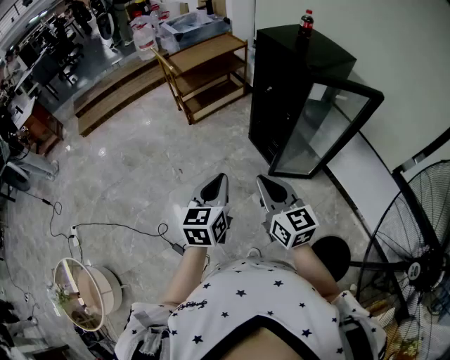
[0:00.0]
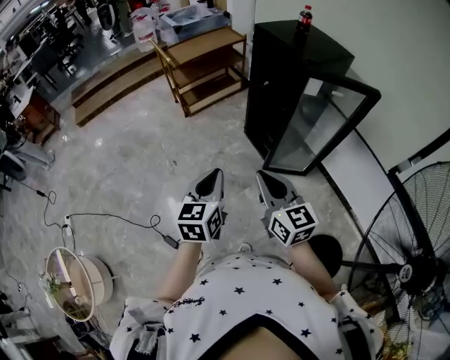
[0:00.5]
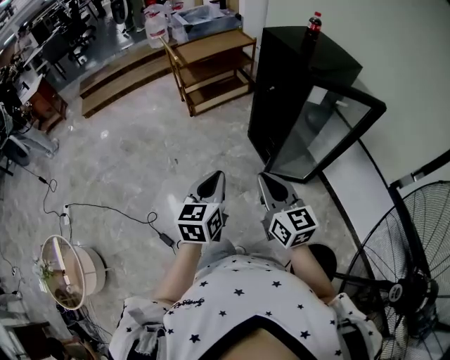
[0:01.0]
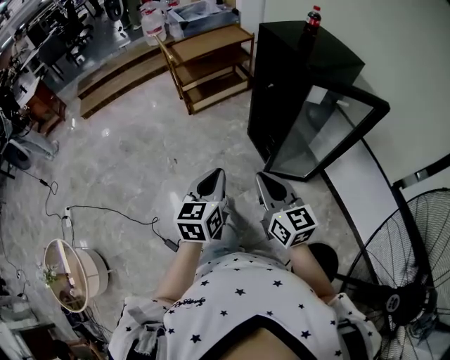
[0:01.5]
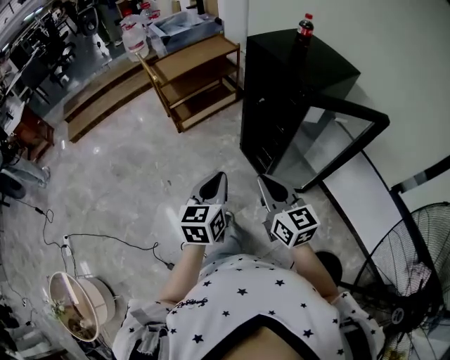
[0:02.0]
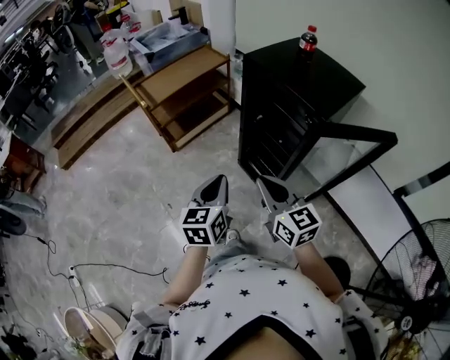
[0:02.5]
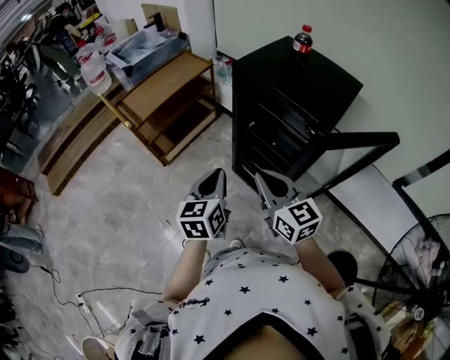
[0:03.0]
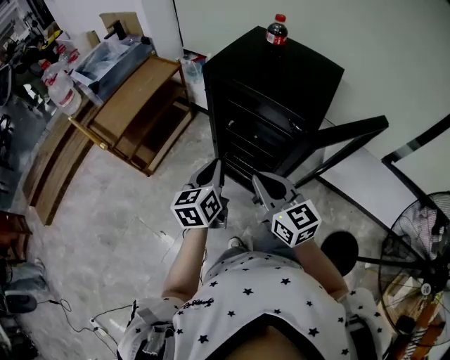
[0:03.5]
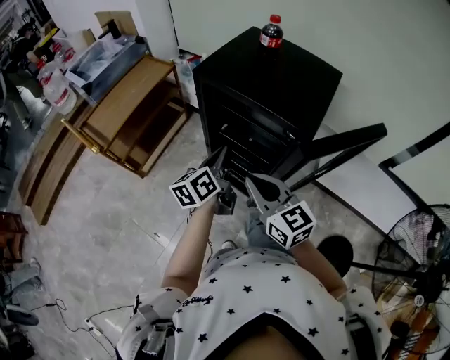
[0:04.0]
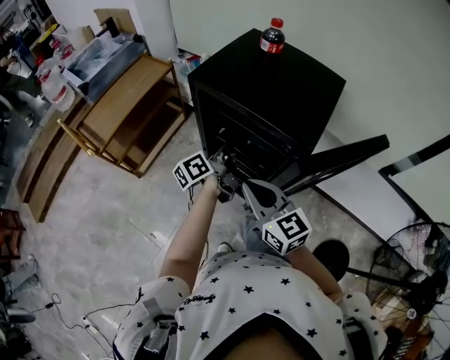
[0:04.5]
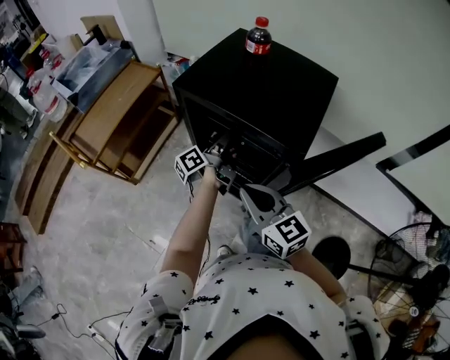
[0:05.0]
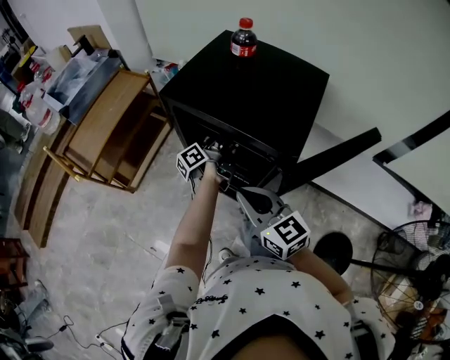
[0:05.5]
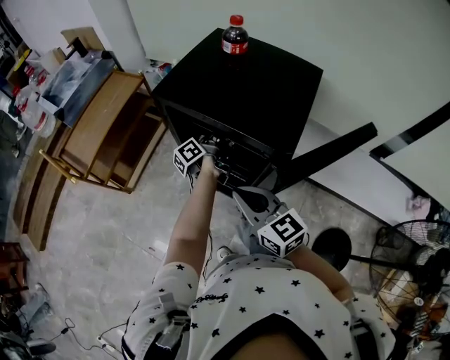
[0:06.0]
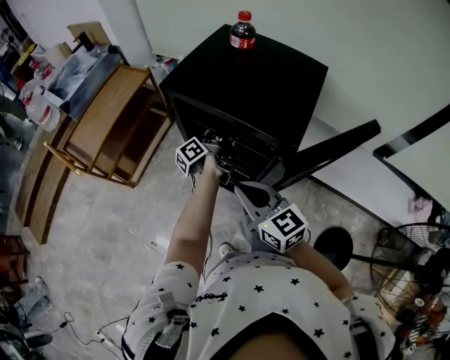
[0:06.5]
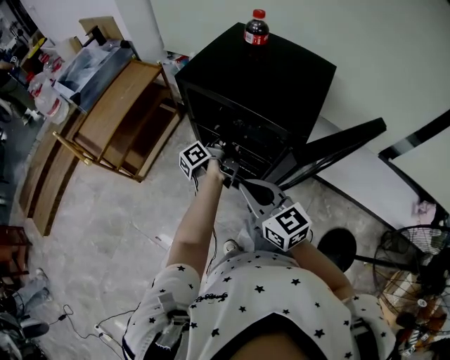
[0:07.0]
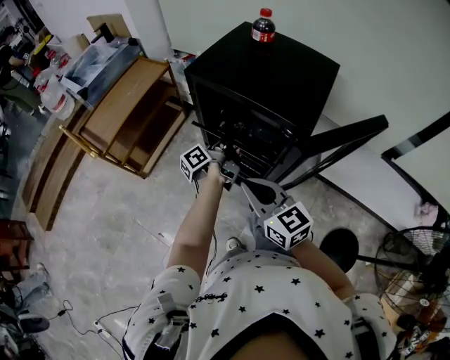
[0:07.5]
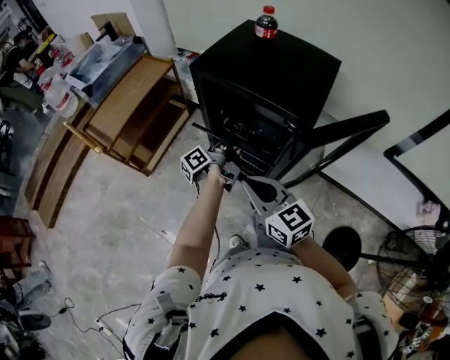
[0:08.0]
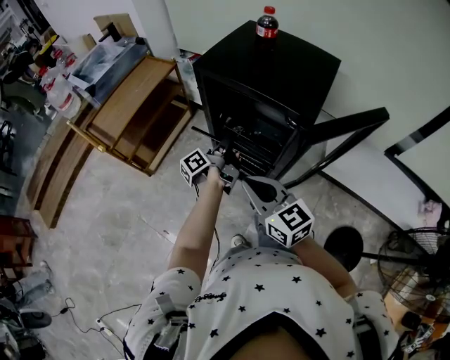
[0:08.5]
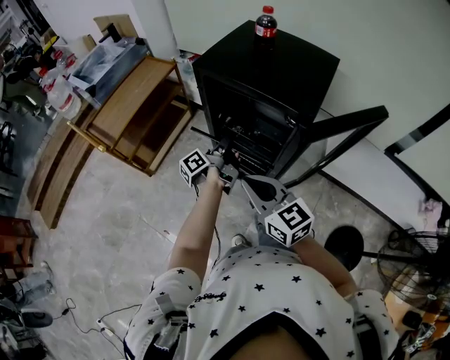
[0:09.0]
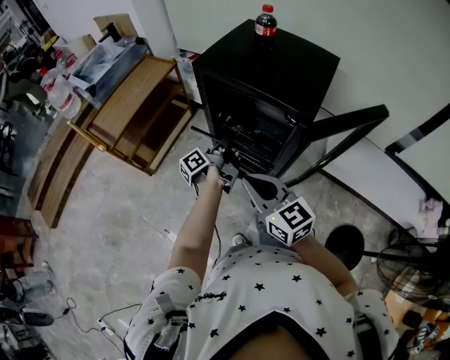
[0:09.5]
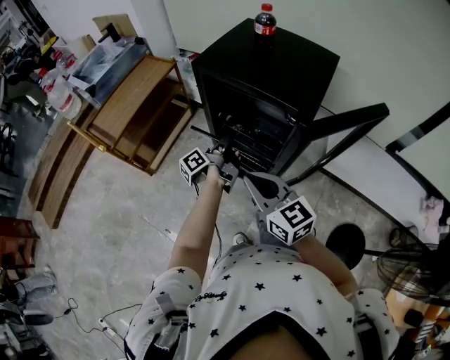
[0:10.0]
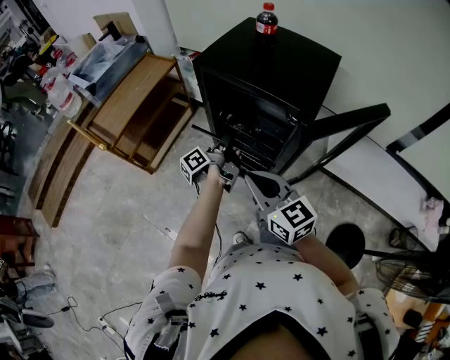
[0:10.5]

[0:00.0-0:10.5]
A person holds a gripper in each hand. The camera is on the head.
0.0 to 2.0 s: Both grippers move forward and to the right, approximately 15 cm.
2.0 to 4.0 s: The two grippers go approximately 35 cm forward. The left gripper changes its angle by approximately 40 degrees.
4.0 to 6.5 s: The left gripper moves forward, to the right and downward, approximately 20 cm, swivels roughly 40 degrees, and opens, then closes again.
6.5 to 8.5 s: The right gripper moves backward, roughly 5 cm. The left gripper moves backward and to the left, some 15 cm.
8.5 to 10.5 s: Both grippers stay about where they are.

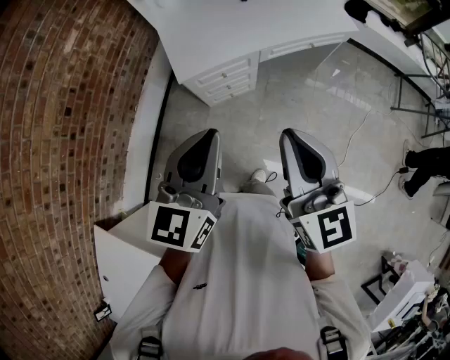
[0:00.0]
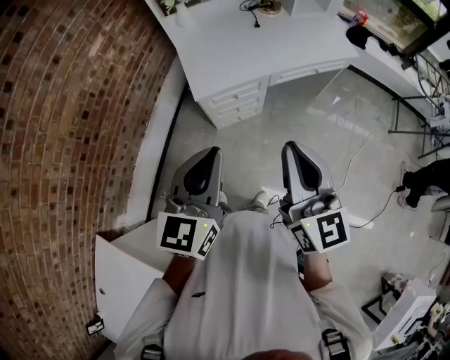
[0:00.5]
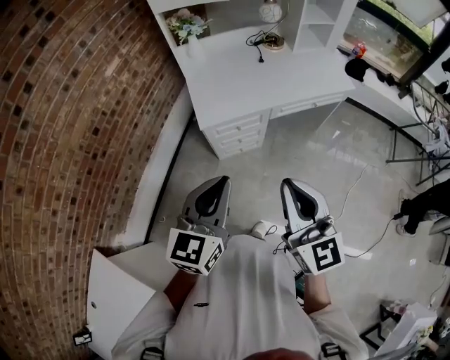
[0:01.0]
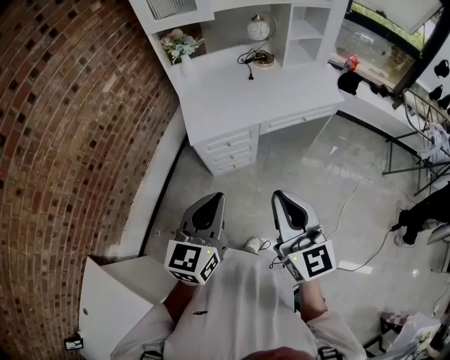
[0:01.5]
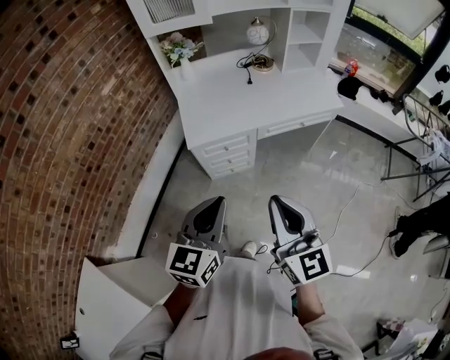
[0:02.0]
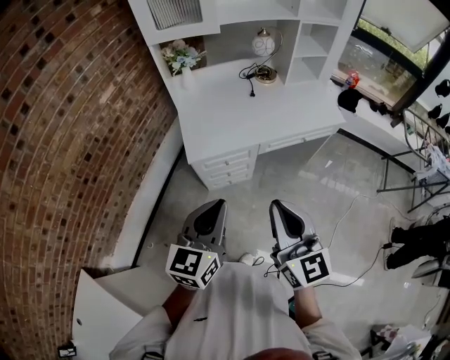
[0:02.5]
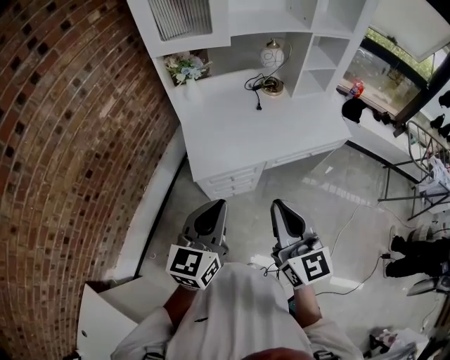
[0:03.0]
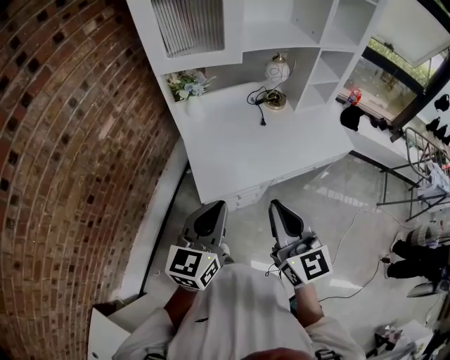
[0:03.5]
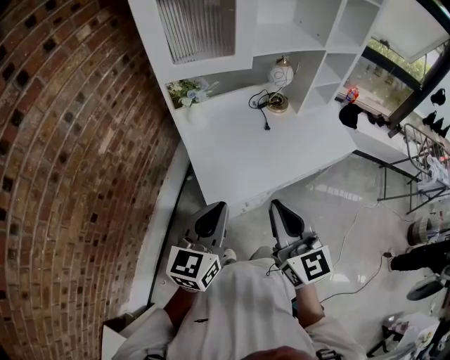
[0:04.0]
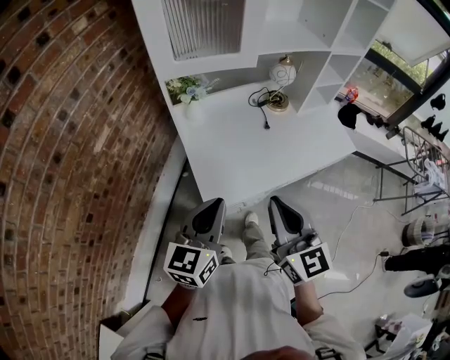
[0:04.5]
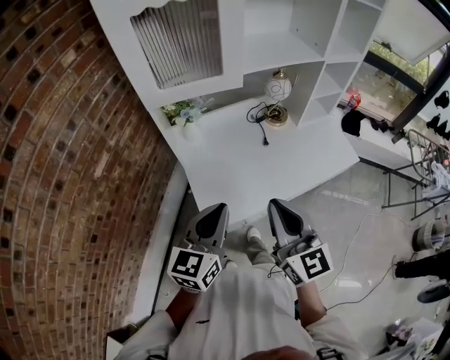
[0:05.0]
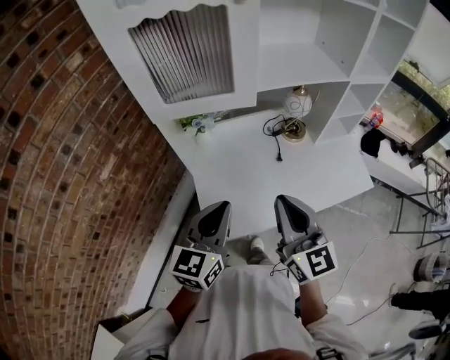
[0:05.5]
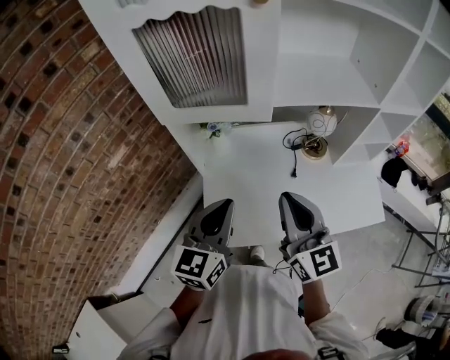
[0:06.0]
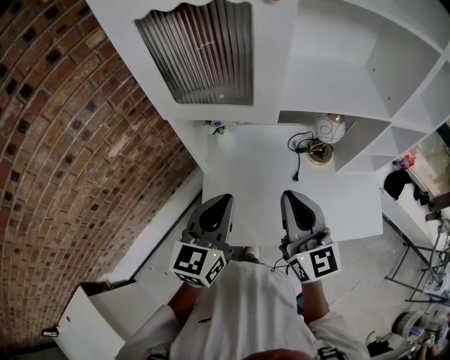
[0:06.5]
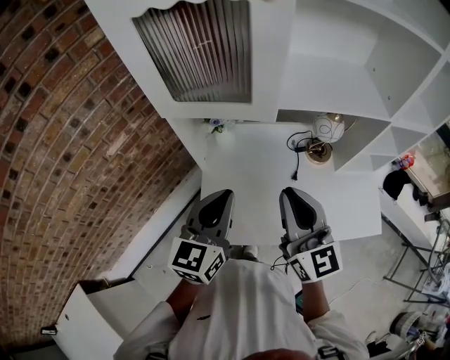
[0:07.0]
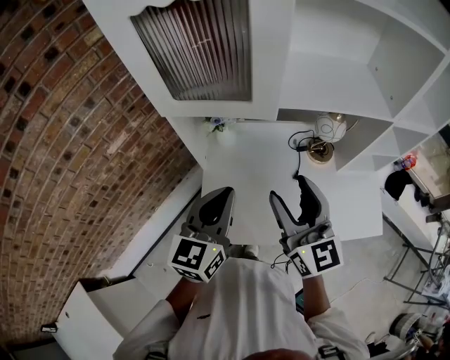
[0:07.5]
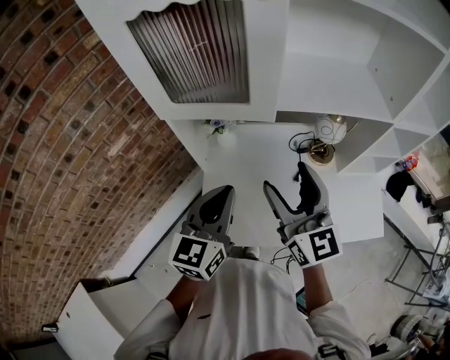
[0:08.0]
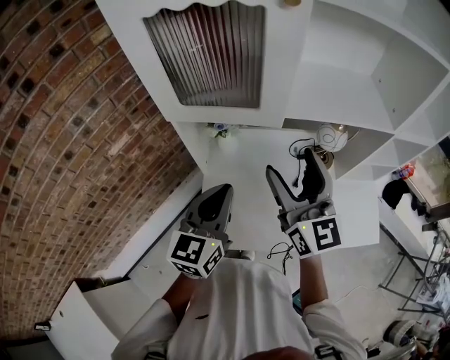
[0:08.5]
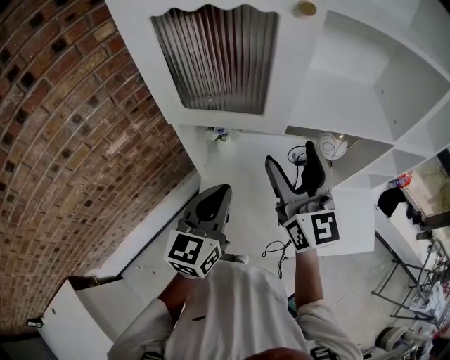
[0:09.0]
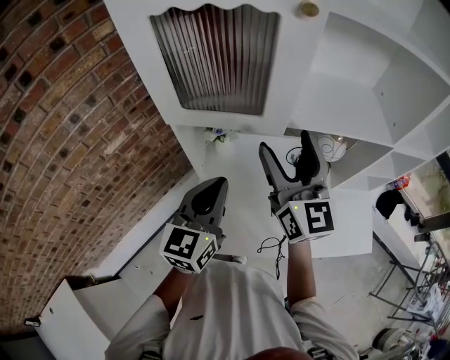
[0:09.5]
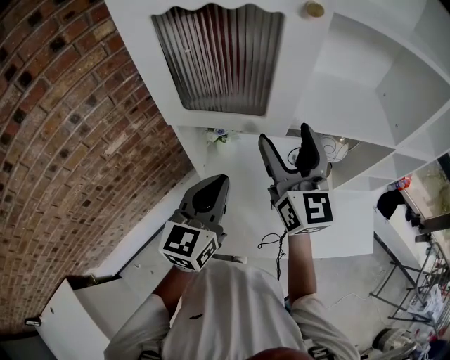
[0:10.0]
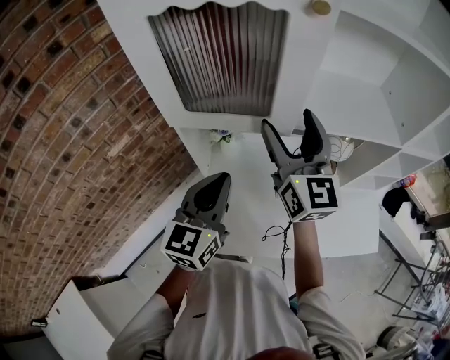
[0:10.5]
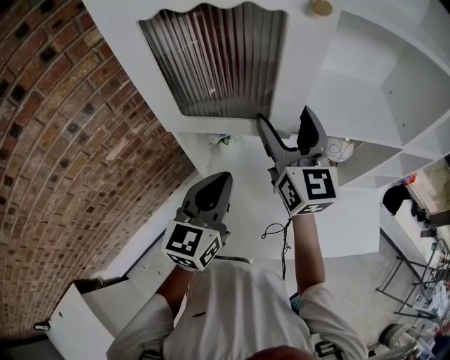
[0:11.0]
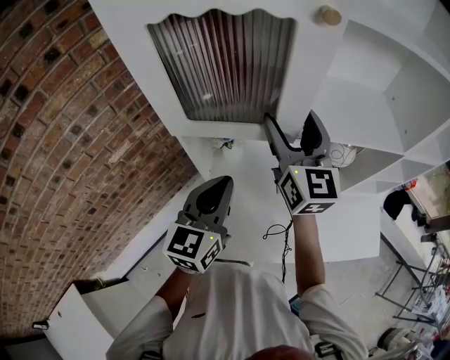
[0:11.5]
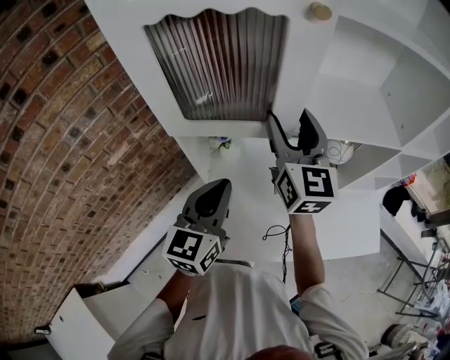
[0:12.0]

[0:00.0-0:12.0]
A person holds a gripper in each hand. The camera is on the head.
0.0 to 2.0 s: The two grippers go roughly 5 cm backward.
2.0 to 4.0 s: The two grippers go roughly 35 cm forward and to the left.
4.0 to 6.0 s: The two grippers go some 25 cm forward.
6.0 to 8.0 s: The right gripper moves forward, approximately 5 cm, and opens its fingers.
8.0 to 10.0 s: The right gripper is displaced forward and upward by about 15 cm; the left gripper heads forward, covering about 5 cm.
10.0 to 12.0 s: The right gripper goes about 5 cm forward.

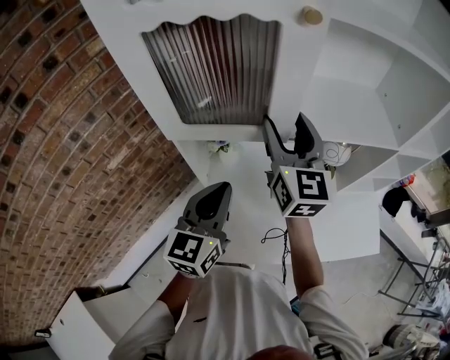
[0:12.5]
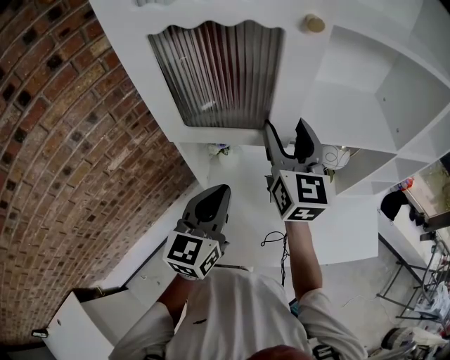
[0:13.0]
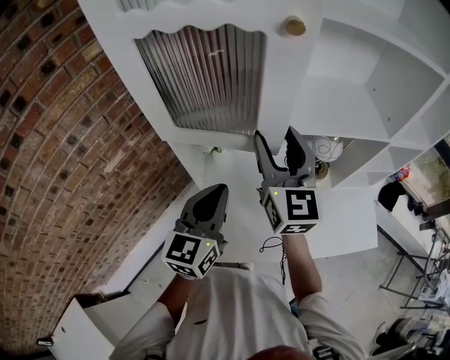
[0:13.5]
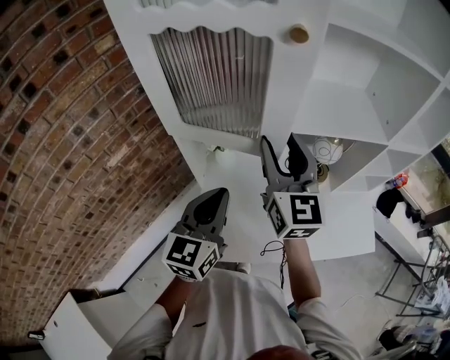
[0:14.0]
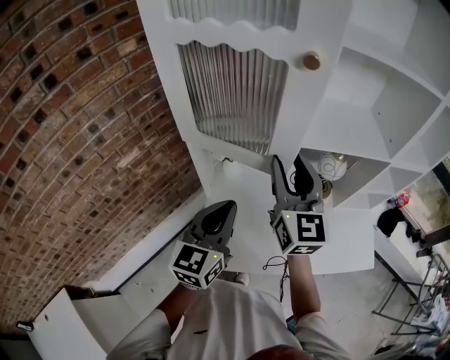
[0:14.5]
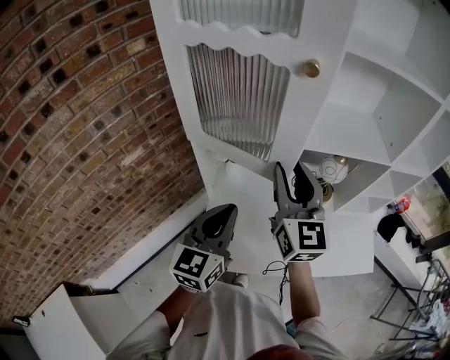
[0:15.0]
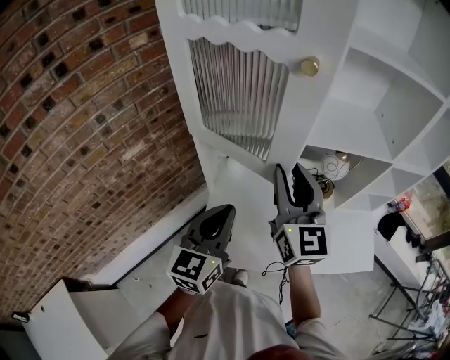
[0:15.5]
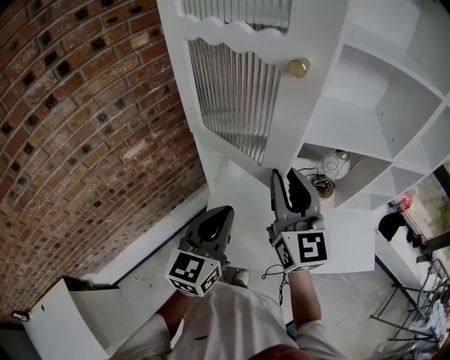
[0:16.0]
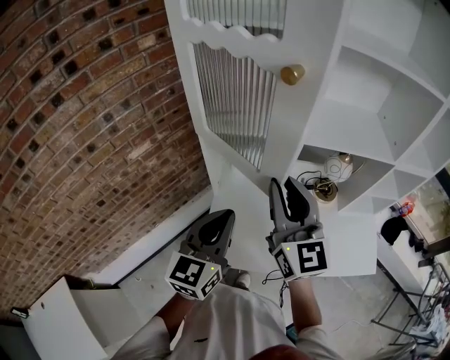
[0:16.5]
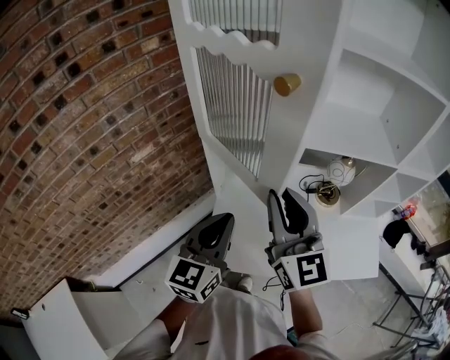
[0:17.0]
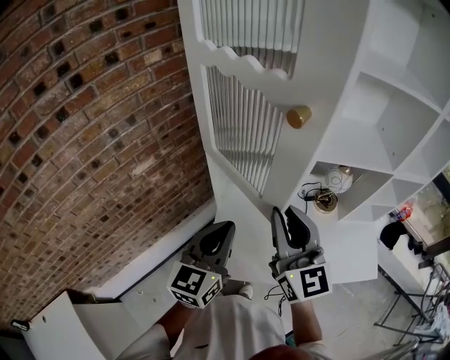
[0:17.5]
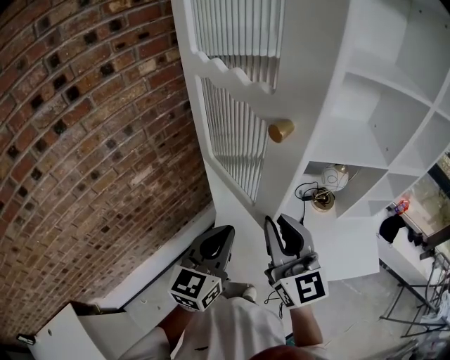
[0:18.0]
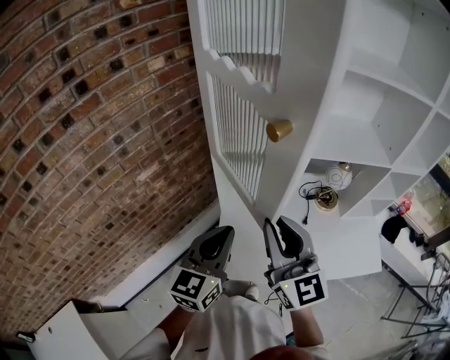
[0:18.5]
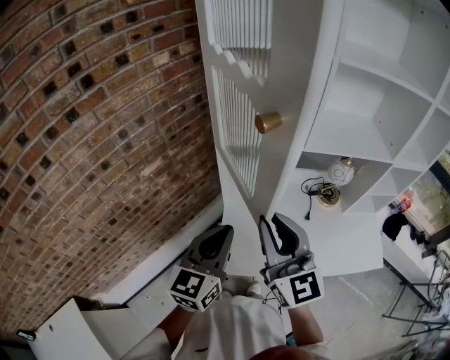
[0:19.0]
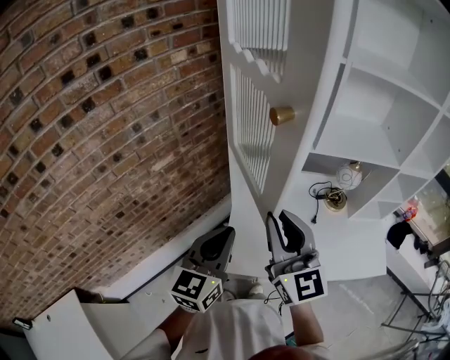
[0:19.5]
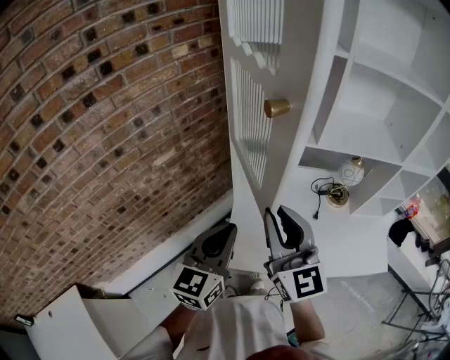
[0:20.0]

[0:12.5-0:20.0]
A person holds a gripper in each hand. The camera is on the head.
12.5 to 14.5 s: The right gripper heads backward, covering approximately 10 cm, while the left gripper goes about 5 cm backward.
14.5 to 16.5 s: The right gripper goes about 10 cm backward. The left gripper heads backward, covering some 5 cm.
16.5 to 18.0 s: The right gripper changes place by some 5 cm.
18.0 to 20.0 s: The right gripper goes about 5 cm to the left, while the left gripper heads backward and to the left, covering roughly 10 cm.
